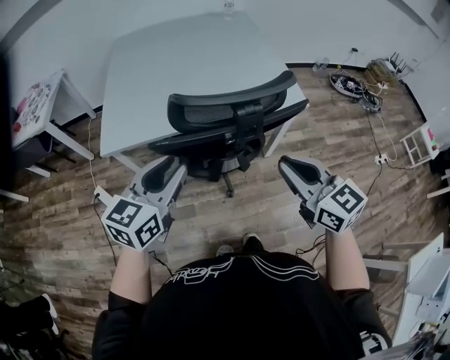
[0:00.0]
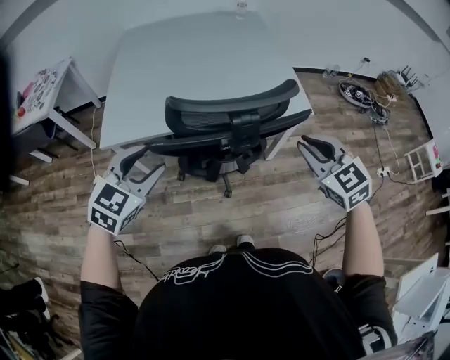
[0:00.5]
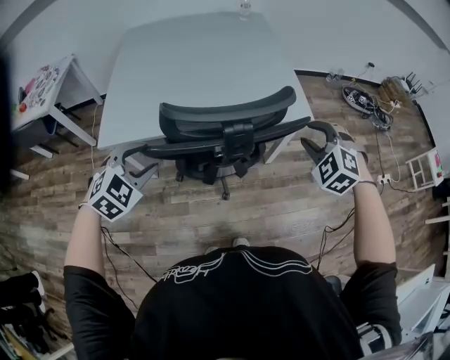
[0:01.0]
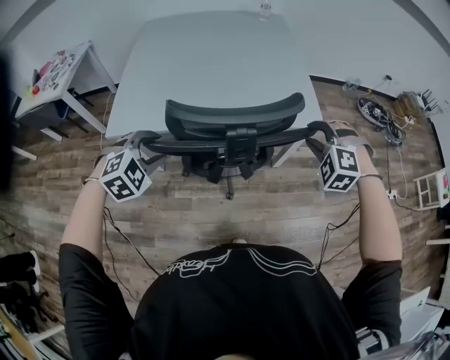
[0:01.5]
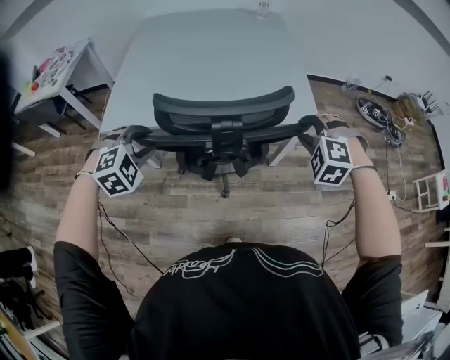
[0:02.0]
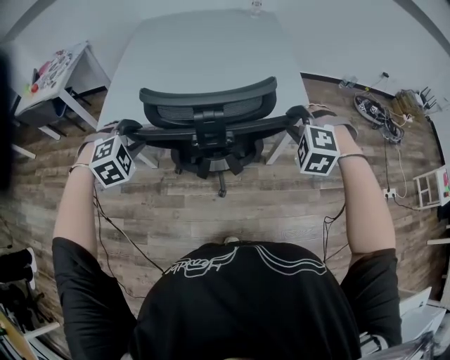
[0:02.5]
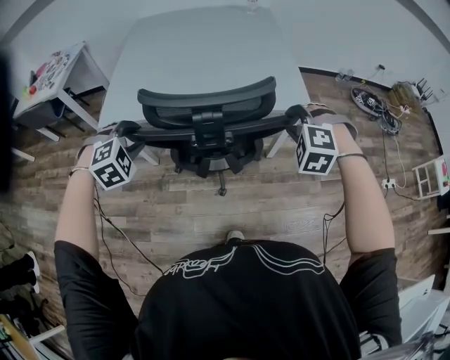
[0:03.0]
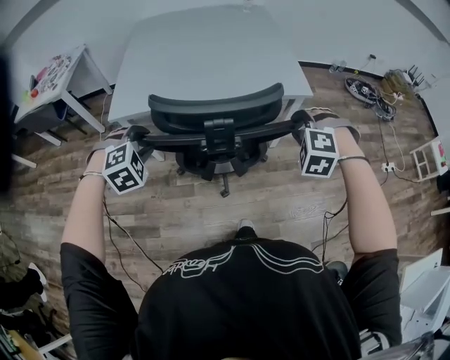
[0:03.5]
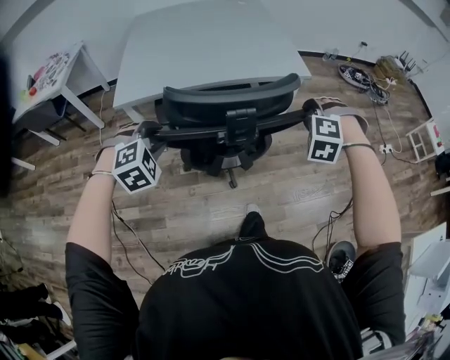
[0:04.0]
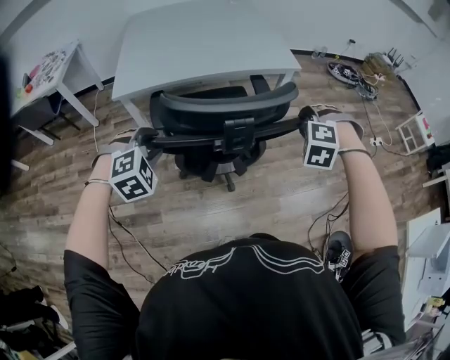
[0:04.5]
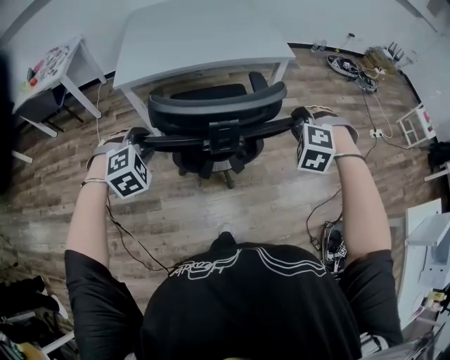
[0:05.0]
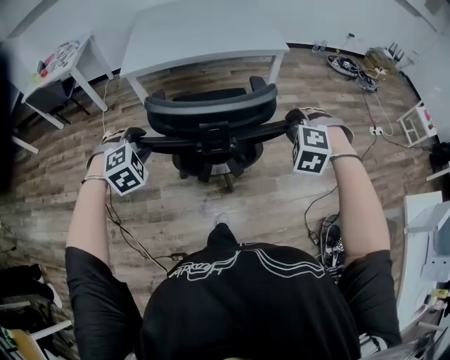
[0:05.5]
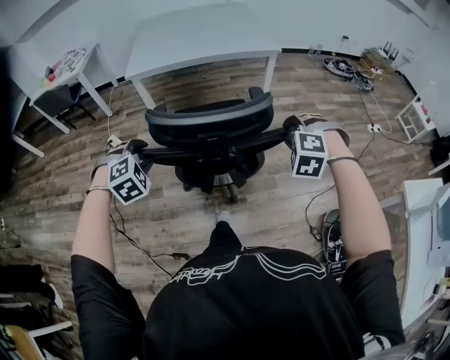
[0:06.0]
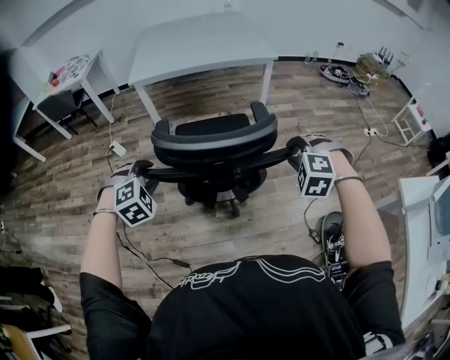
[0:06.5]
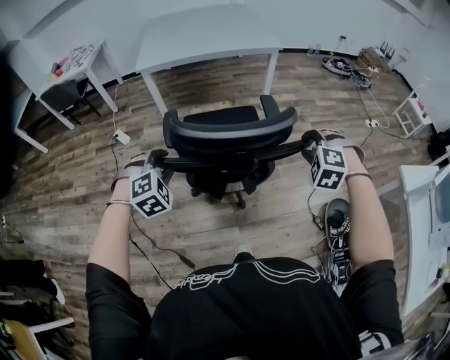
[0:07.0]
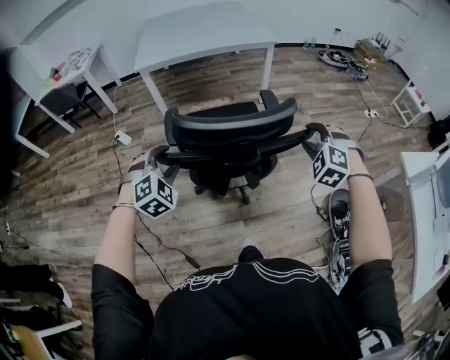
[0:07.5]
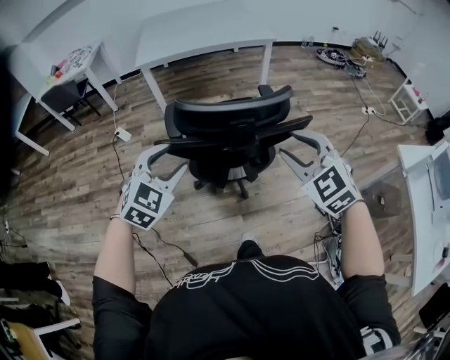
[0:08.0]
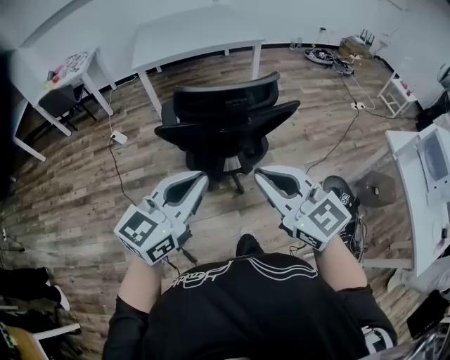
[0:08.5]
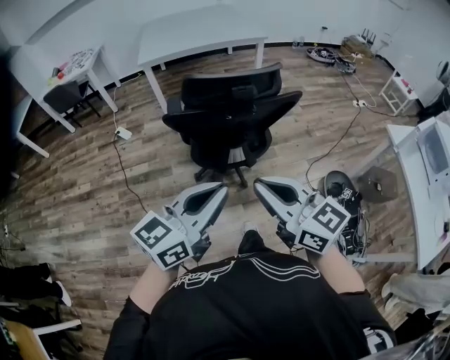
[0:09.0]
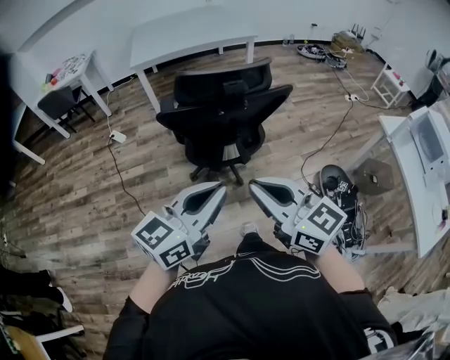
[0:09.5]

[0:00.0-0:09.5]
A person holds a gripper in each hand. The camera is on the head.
0:00.0 to 0:02.0: The left gripper heads downward and forward, covering roughly 10 cm, and tips its fingers downward by some 40 degrees; the right gripper shifts roughly 25 cm forward, to the right and downward, rotates around the line of its fingers by about 70 degrees, counterclockwise from behind, and opens up.
0:02.0 to 0:04.0: The grippers both shift backward by roughly 20 cm.
0:04.0 to 0:05.5: The two grippers go about 25 cm backward.
0:05.5 to 0:07.5: Both grippers move backward, about 25 cm.
0:07.5 to 0:09.5: The left gripper travels backward, upward and to the right by approximately 35 cm, tips its fingers upward by some 40 degrees, and closes. The right gripper heads backward and to the left, covering roughly 40 cm, points its fingers roughly 40 degrees further upward, and closes up.

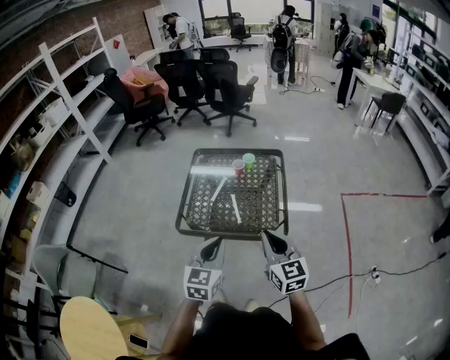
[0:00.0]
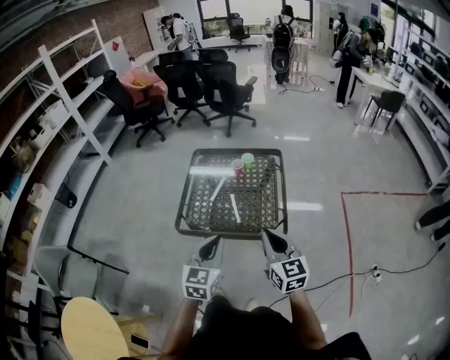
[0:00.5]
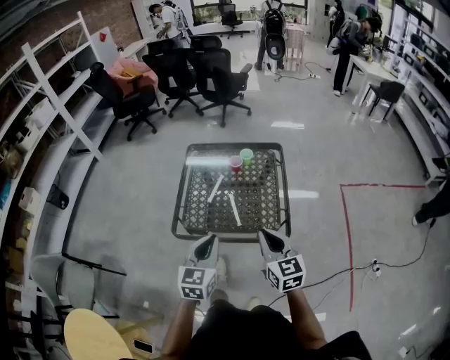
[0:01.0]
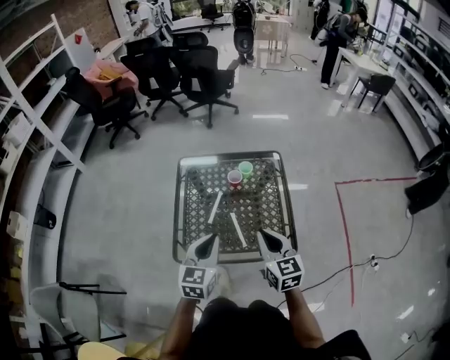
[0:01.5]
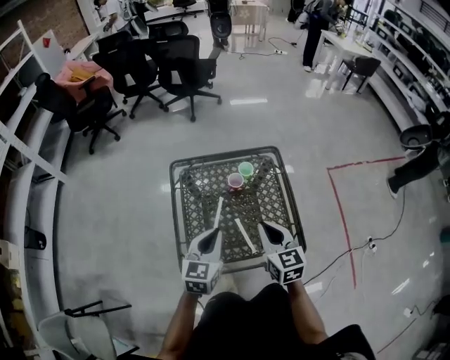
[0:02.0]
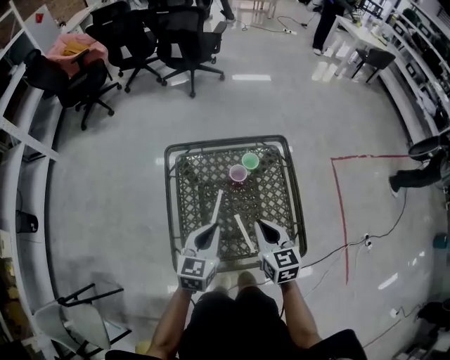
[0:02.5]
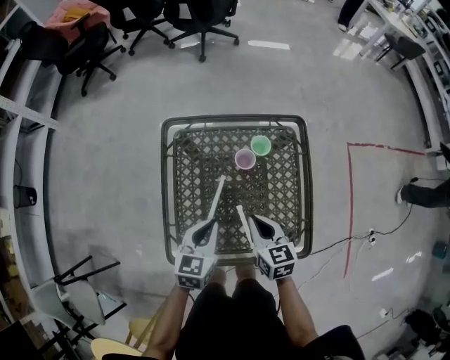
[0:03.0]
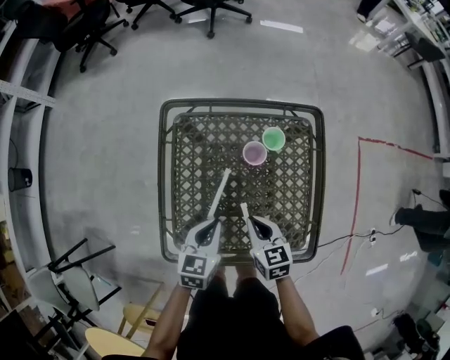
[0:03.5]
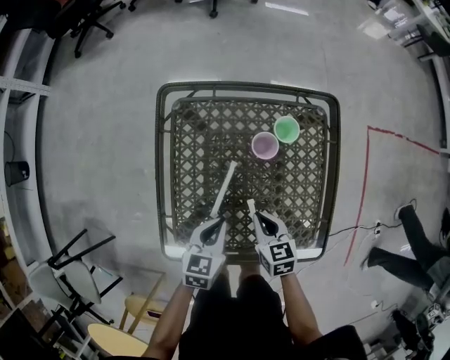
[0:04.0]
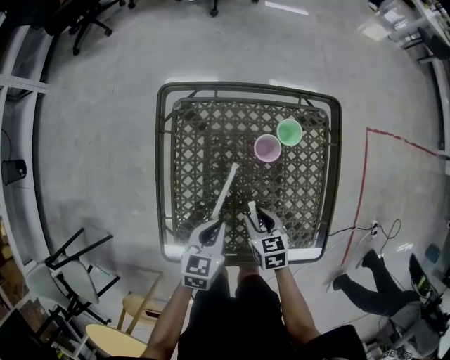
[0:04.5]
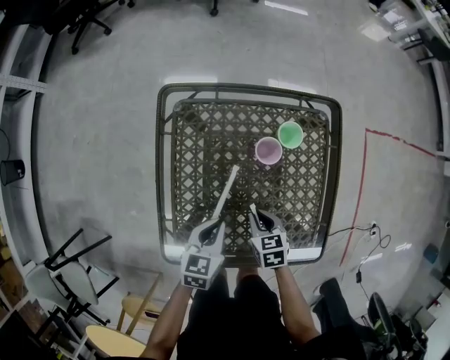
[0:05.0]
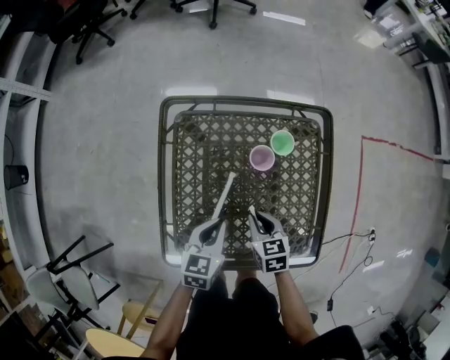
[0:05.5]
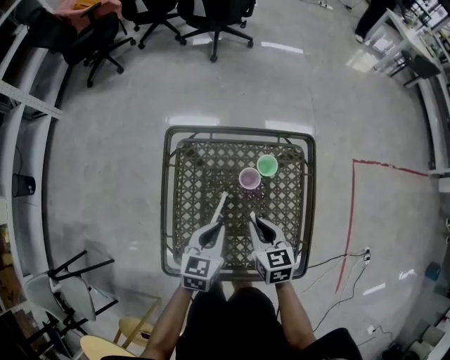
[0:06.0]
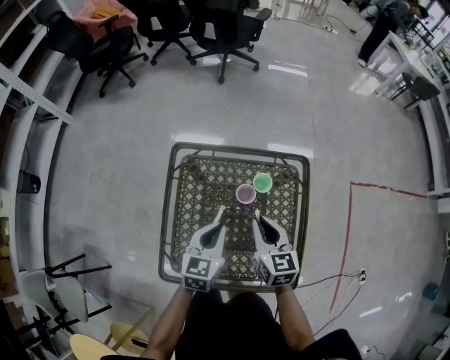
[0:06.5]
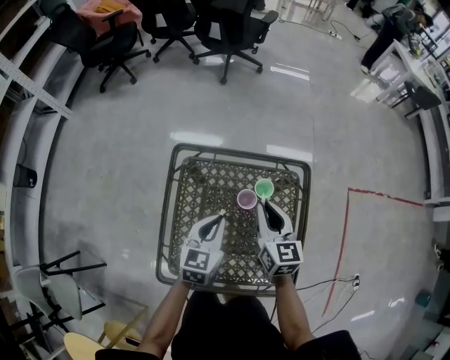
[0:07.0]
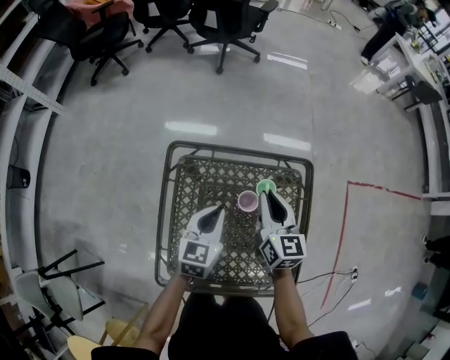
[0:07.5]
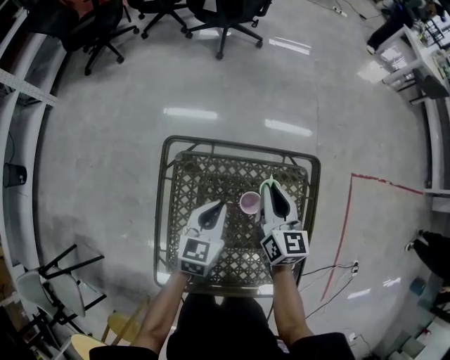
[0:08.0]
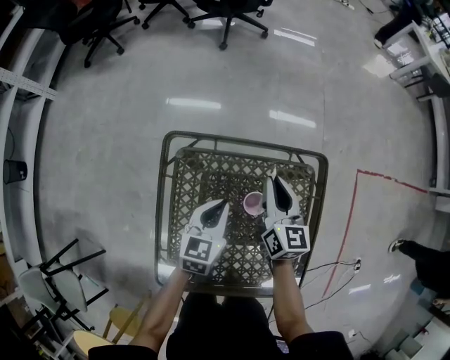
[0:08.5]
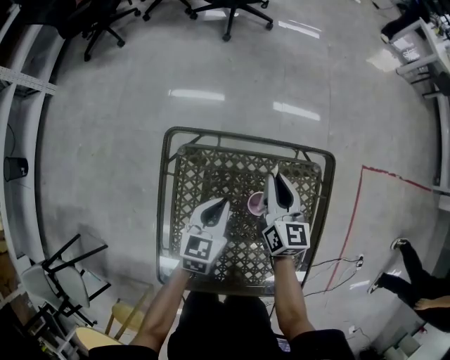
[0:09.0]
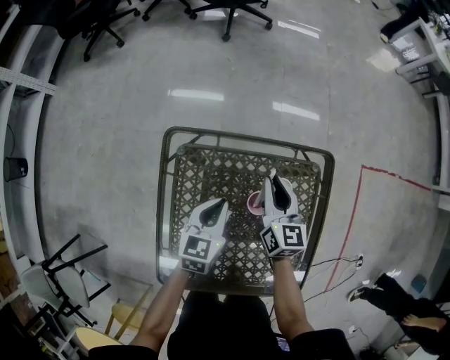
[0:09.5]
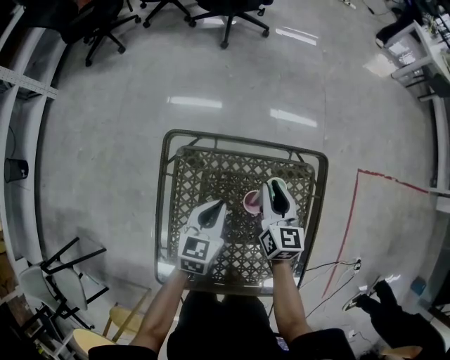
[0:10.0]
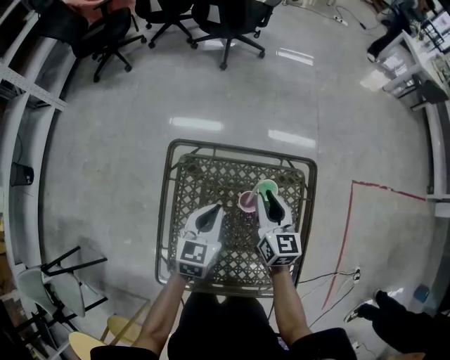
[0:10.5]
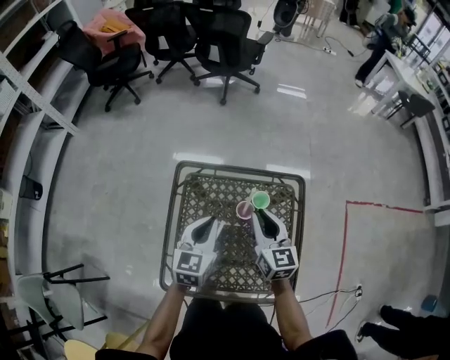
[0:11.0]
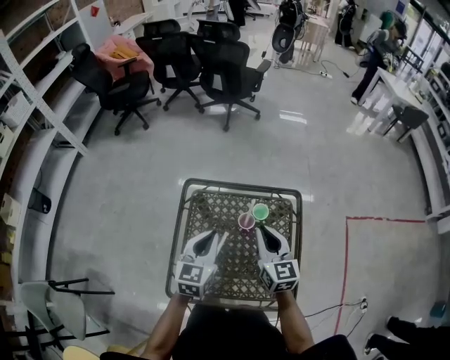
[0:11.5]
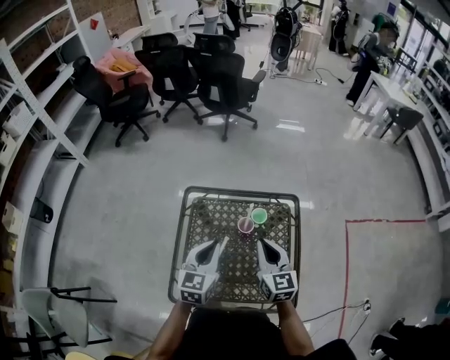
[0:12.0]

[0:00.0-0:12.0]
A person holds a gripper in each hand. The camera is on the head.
0:00.0 to 0:02.0: Both grippers travel together forward, about 30 cm. The right gripper turns by some 20 degrees.
0:02.0 to 0:04.0: Both grippers travel together downward, about 30 cm. The left gripper turns by about 30 degrees; the right gripper changes its angle by roughly 30 degrees.
0:04.0 to 0:06.0: The grippers both shift upward and forward by roughly 15 cm. The right gripper opens and closes again.
0:06.0 to 0:08.0: Both grippers travel together forward, roughly 20 cm. The right gripper swivels some 30 degrees.
0:08.0 to 0:10.0: The right gripper shifts about 5 cm downward.
0:10.0 to 0:12.0: The left gripper shifts some 25 cm upward and backward; the right gripper goes roughly 30 cm backward and upward.

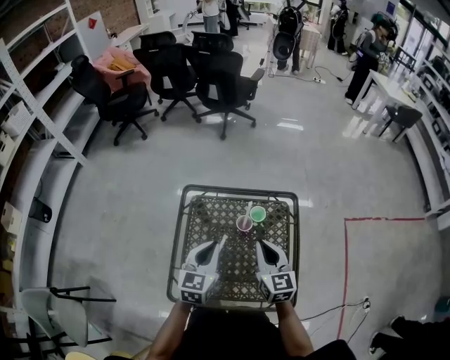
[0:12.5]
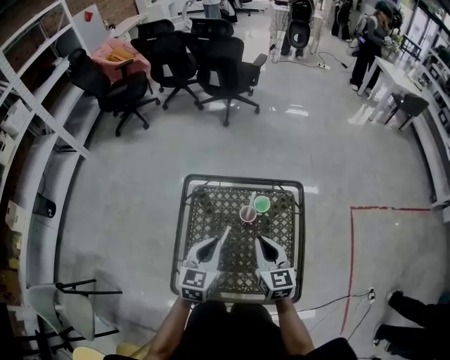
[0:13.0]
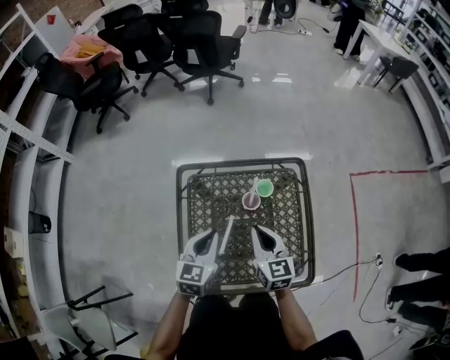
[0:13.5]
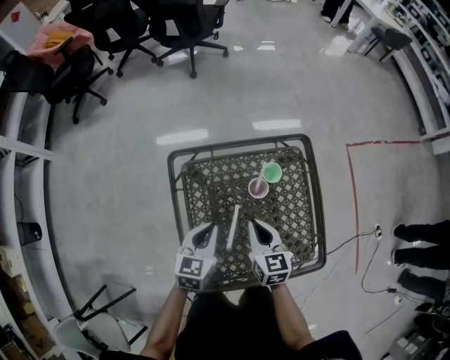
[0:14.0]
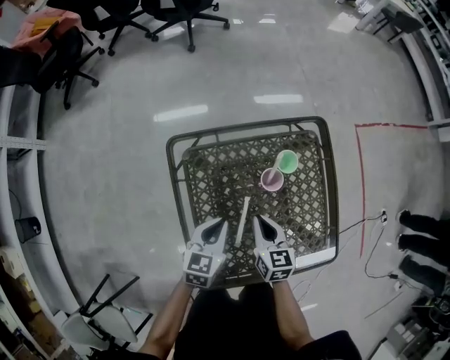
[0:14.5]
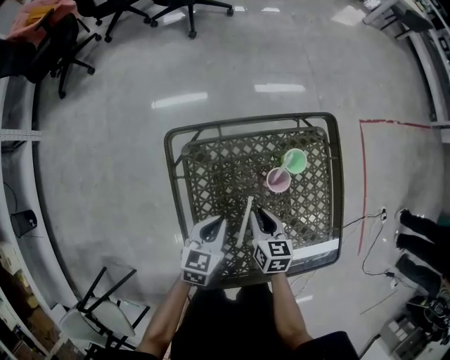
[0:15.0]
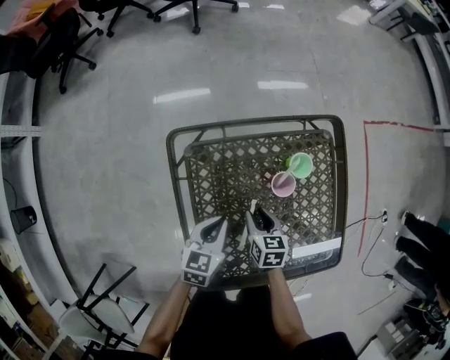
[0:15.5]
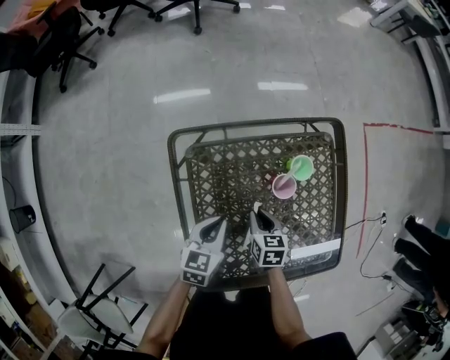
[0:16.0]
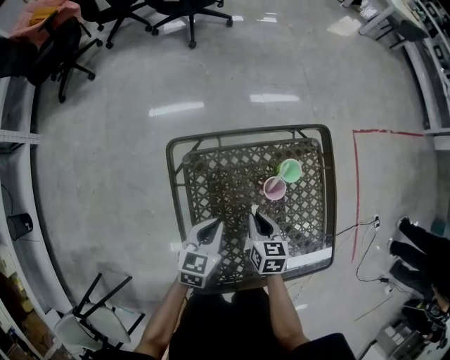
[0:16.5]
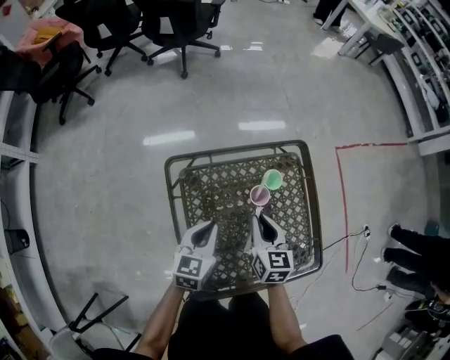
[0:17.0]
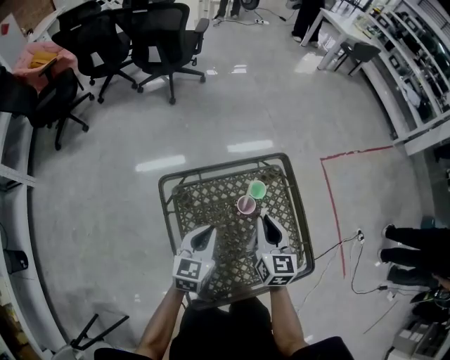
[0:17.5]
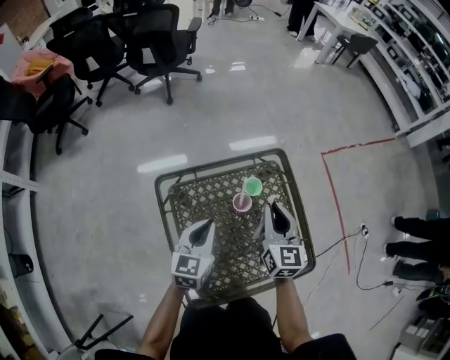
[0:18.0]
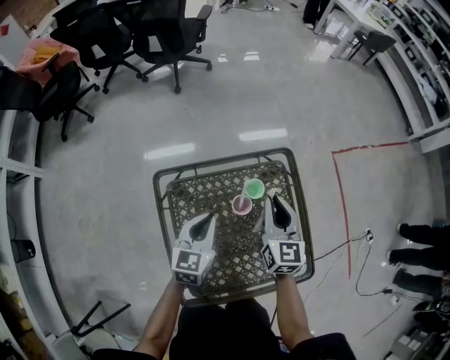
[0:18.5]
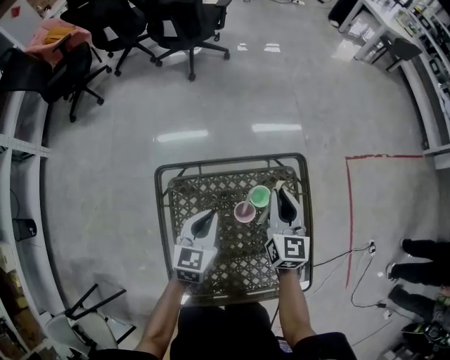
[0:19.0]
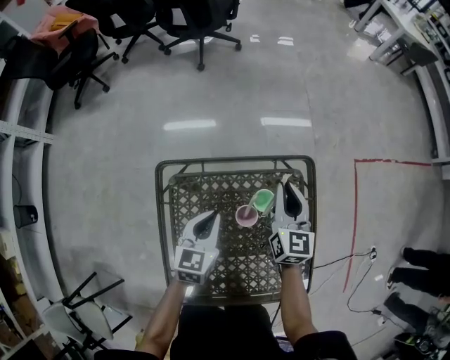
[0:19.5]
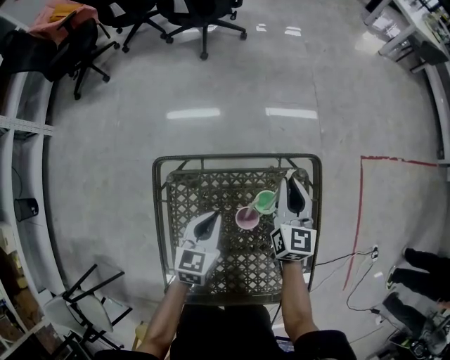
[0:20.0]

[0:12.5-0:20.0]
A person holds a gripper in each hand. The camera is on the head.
0:12.5 to 0:14.5: The right gripper moves downward and to the left, approximately 25 cm, and turns by about 30 degrees. Meanwhile the left gripper is displaced downward by roughly 20 cm, and changes its angle by some 30 degrees.
0:14.5 to 0:16.5: The right gripper shifts roughly 5 cm downward, and opens, then closes once more.
0:16.5 to 0:18.0: The left gripper is displaced upward by about 15 cm; the right gripper is displaced upward by about 25 cm, and points its fingers roughly 30 degrees further upward.
0:18.0 to 0:20.0: The right gripper travels forward and downward by roughly 25 cm. Meanwhile the left gripper moves downward and forward, about 15 cm.
